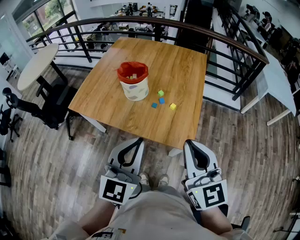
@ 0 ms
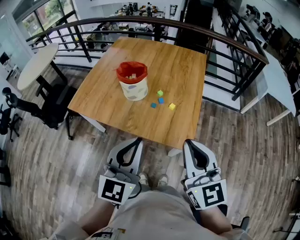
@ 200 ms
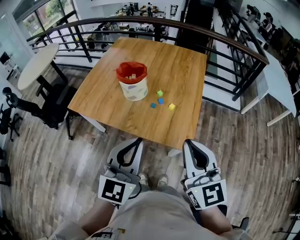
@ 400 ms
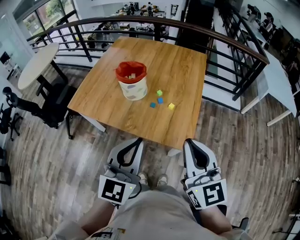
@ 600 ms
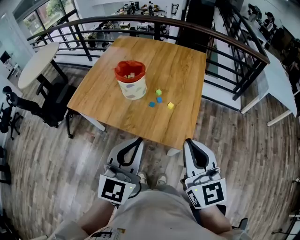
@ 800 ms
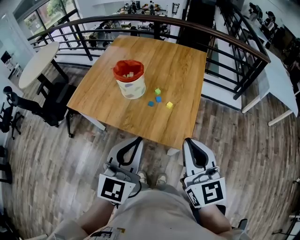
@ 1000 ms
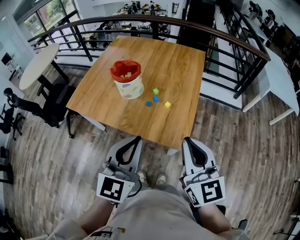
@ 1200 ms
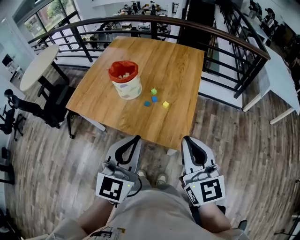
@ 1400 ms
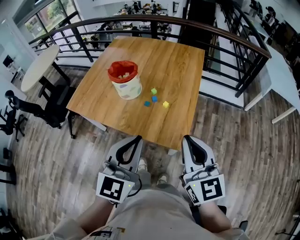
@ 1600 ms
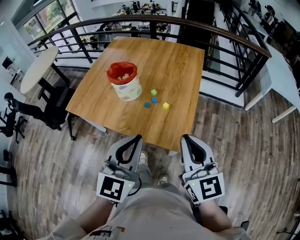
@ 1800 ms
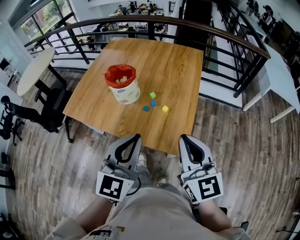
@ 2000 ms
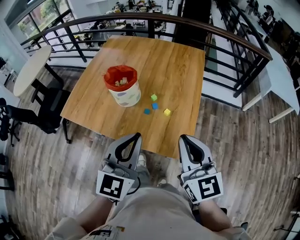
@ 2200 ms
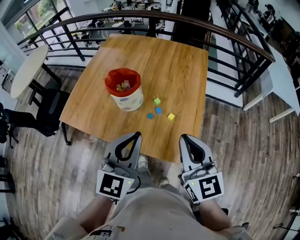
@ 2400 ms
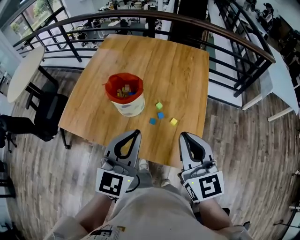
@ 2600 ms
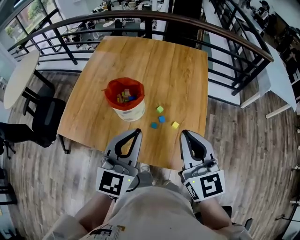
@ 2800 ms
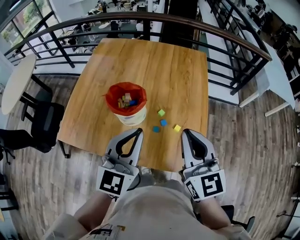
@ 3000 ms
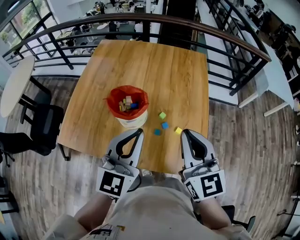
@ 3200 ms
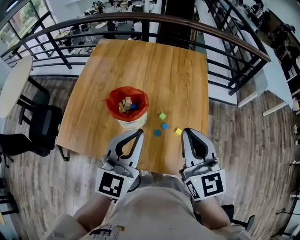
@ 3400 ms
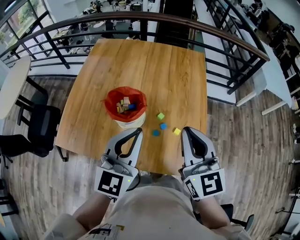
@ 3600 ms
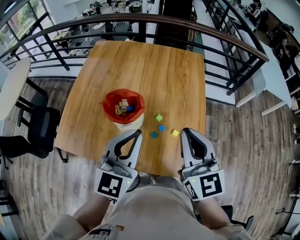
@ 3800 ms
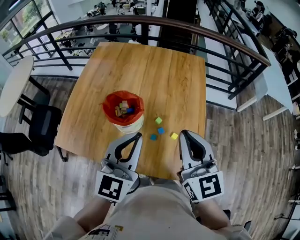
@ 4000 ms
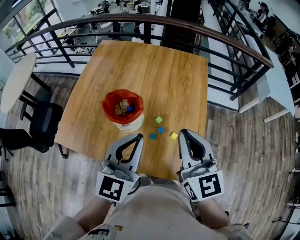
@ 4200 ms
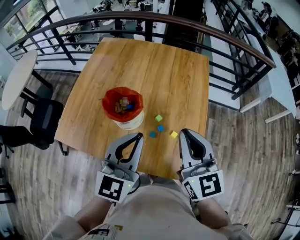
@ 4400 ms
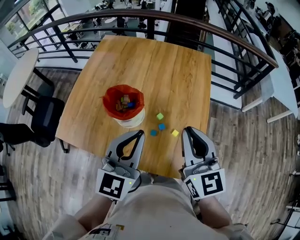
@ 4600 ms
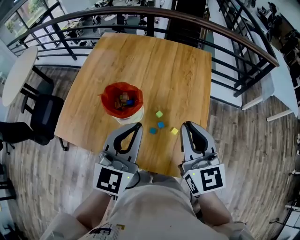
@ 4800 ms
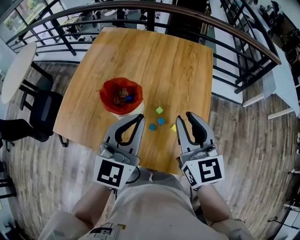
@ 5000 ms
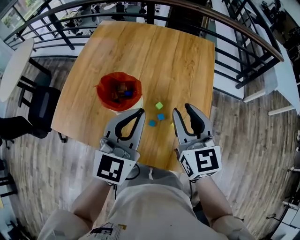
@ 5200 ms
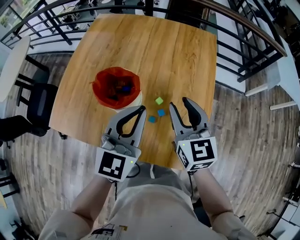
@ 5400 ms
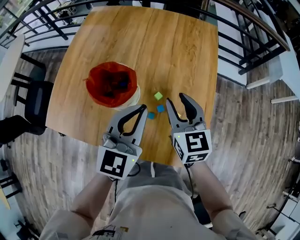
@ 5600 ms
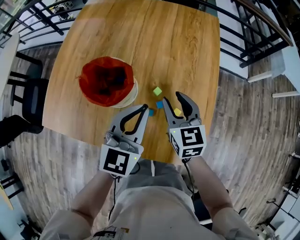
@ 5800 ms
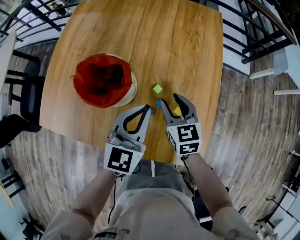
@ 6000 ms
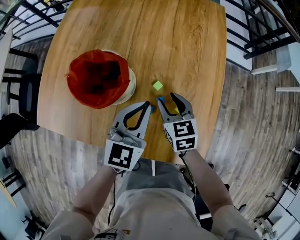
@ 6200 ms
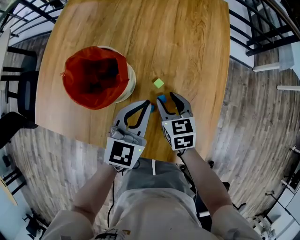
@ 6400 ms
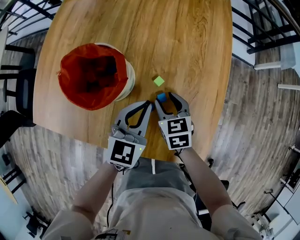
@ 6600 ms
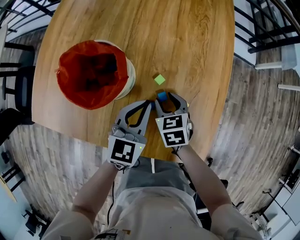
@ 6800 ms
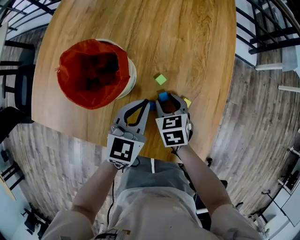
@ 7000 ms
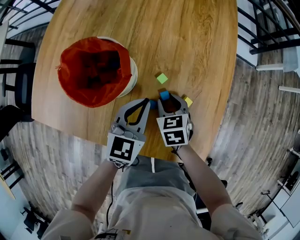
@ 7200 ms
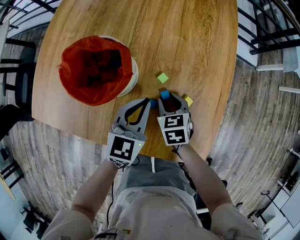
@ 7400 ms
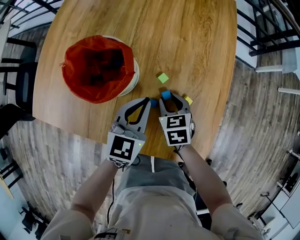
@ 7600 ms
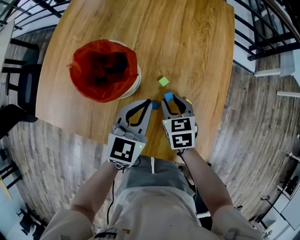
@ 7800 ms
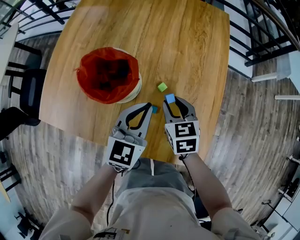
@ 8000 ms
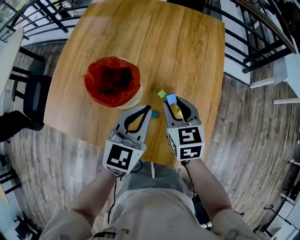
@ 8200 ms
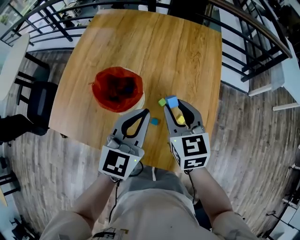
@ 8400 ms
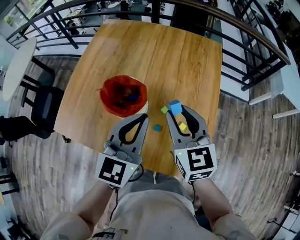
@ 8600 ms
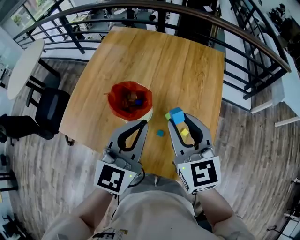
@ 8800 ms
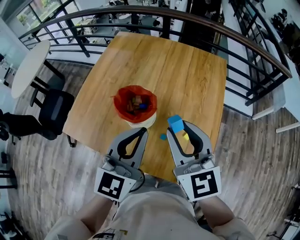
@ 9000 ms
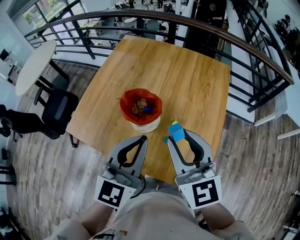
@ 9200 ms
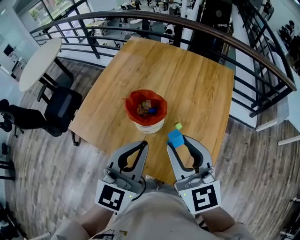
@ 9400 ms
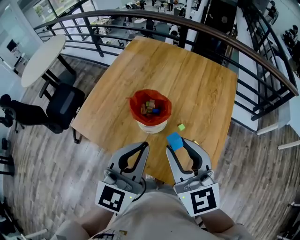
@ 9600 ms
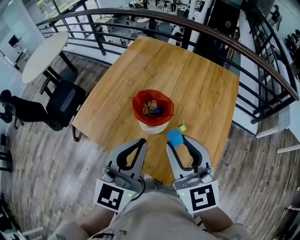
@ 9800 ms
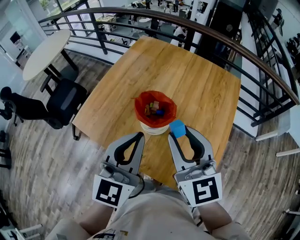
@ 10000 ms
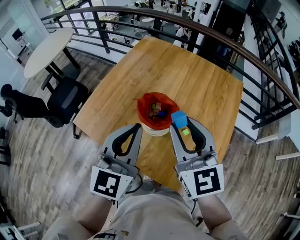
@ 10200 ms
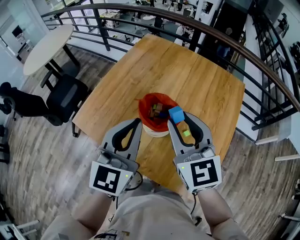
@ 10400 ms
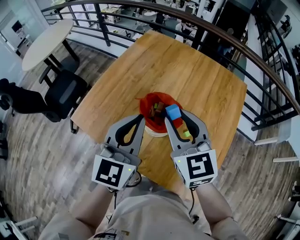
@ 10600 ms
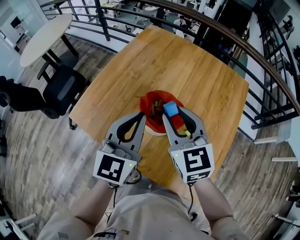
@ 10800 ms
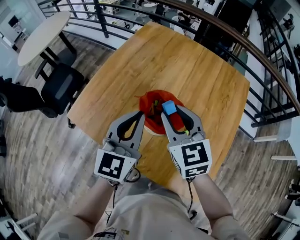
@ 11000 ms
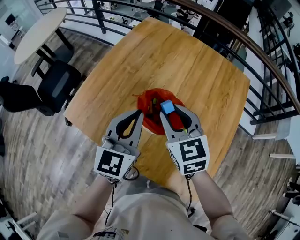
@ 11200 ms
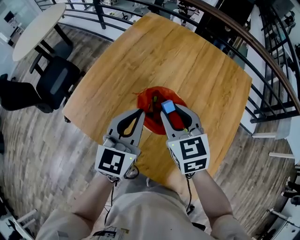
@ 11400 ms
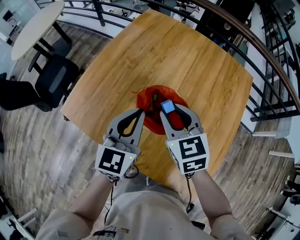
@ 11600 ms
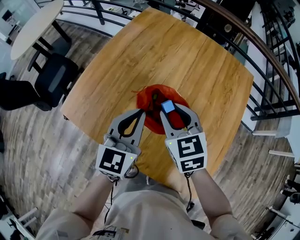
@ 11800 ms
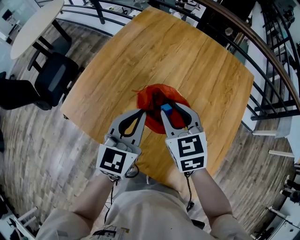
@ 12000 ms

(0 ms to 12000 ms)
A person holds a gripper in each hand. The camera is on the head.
0 ms - 1600 ms: The two grippers go about 10 cm to the right.
1600 ms - 3000 ms: The grippers both shift forward and to the left by some 25 cm.
3000 ms - 4400 ms: The grippers stay close to where they were, moving slightly.
4400 ms - 6000 ms: The two grippers go about 25 cm downward and forward. The right gripper turns by approximately 30 degrees, and opens up.
6000 ms - 7600 ms: The grippers both shift downward by roughly 10 cm.
7600 ms - 9000 ms: Both grippers travel together upward, some 35 cm. The right gripper angles its fingers upward, by roughly 40 degrees. The left gripper turns by roughly 20 degrees.
9000 ms - 10400 ms: The right gripper travels to the left and forward by about 10 cm. Meanwhile the left gripper is displaced to the left by some 10 cm.
10400 ms - 12000 ms: The grippers both shift downward and forward by approximately 20 cm. The right gripper rotates some 20 degrees.

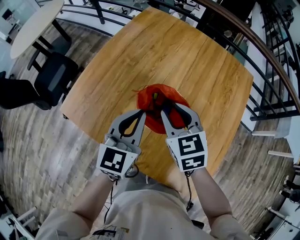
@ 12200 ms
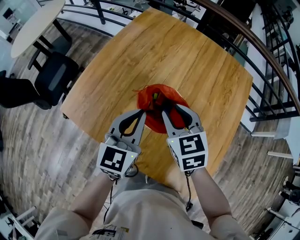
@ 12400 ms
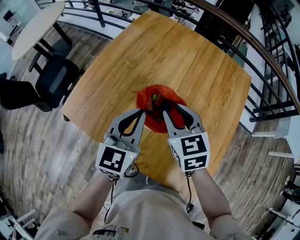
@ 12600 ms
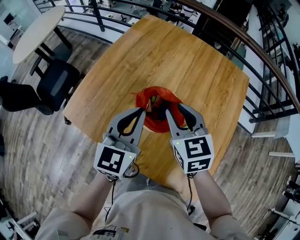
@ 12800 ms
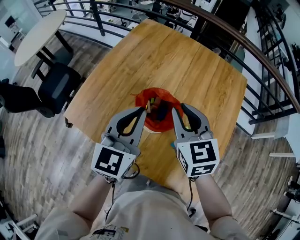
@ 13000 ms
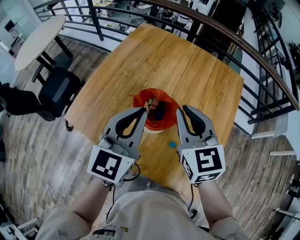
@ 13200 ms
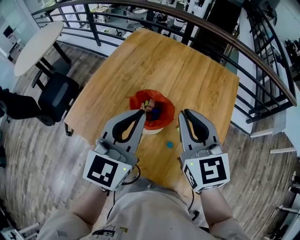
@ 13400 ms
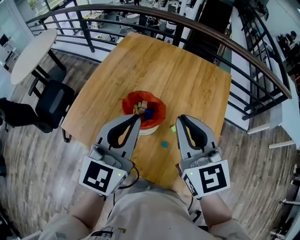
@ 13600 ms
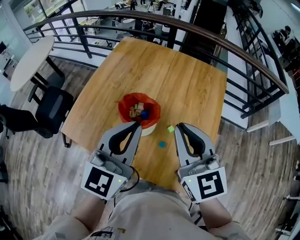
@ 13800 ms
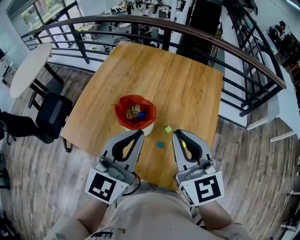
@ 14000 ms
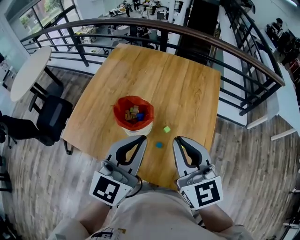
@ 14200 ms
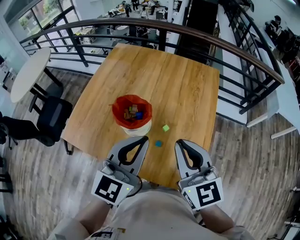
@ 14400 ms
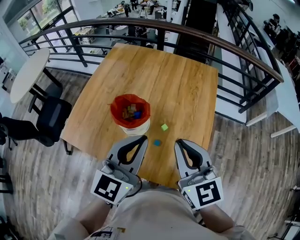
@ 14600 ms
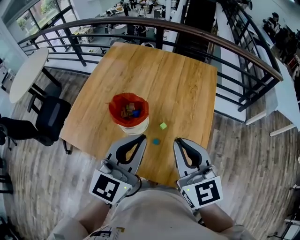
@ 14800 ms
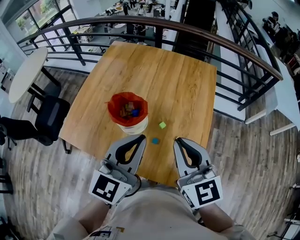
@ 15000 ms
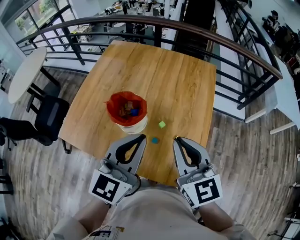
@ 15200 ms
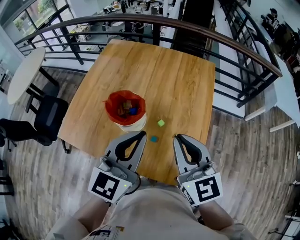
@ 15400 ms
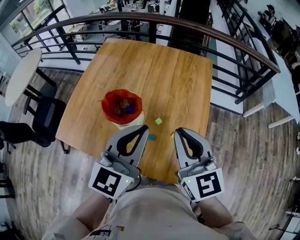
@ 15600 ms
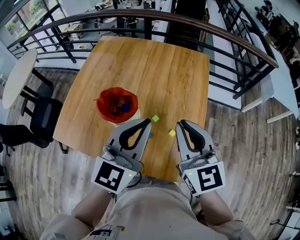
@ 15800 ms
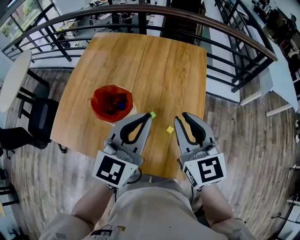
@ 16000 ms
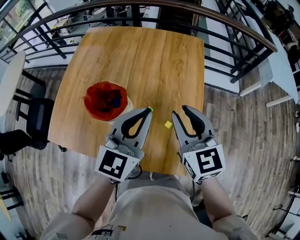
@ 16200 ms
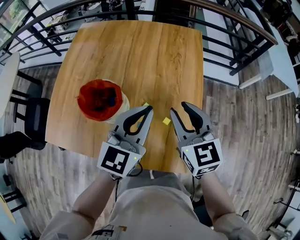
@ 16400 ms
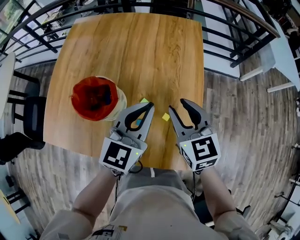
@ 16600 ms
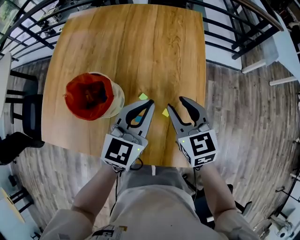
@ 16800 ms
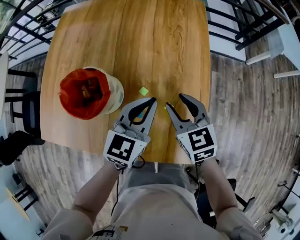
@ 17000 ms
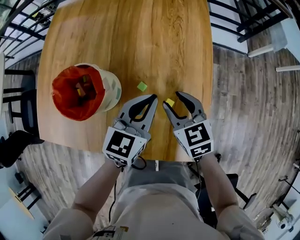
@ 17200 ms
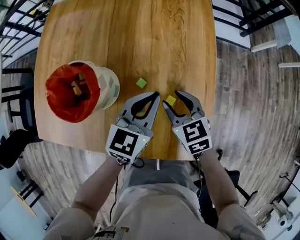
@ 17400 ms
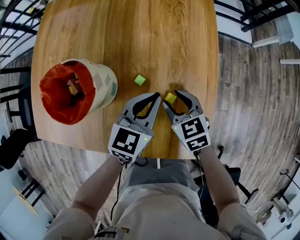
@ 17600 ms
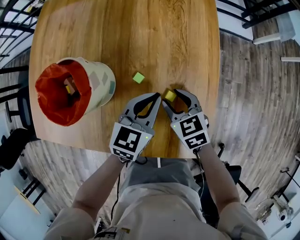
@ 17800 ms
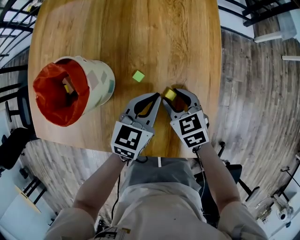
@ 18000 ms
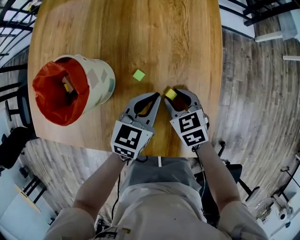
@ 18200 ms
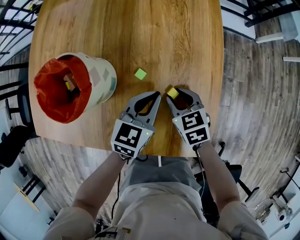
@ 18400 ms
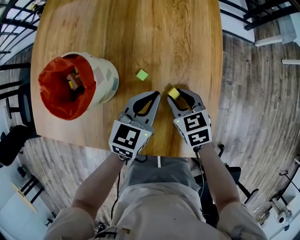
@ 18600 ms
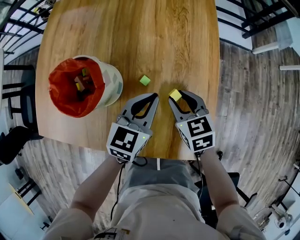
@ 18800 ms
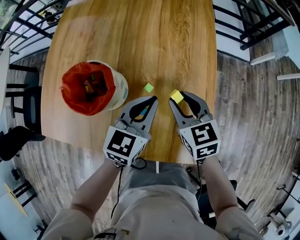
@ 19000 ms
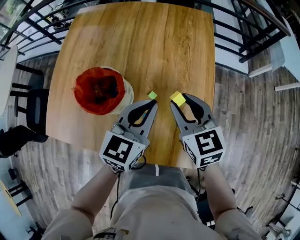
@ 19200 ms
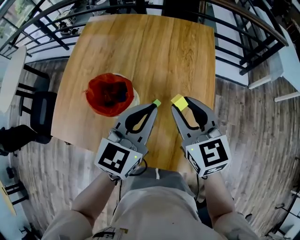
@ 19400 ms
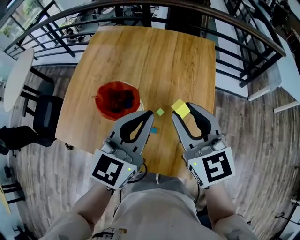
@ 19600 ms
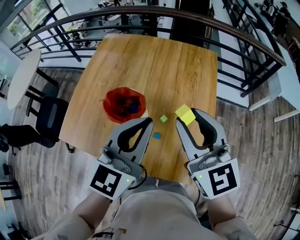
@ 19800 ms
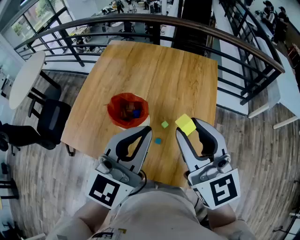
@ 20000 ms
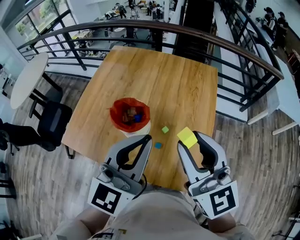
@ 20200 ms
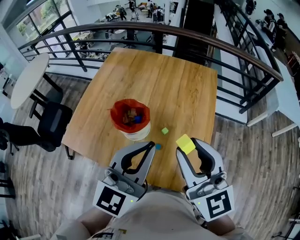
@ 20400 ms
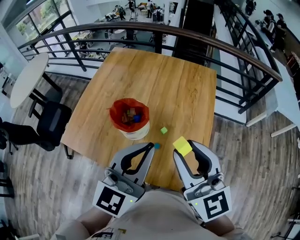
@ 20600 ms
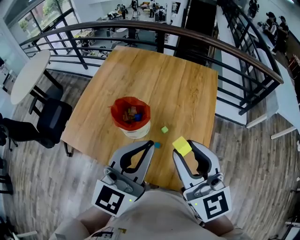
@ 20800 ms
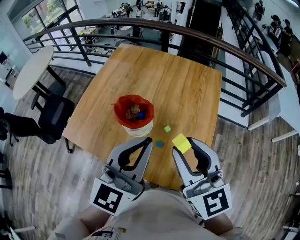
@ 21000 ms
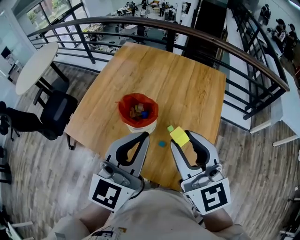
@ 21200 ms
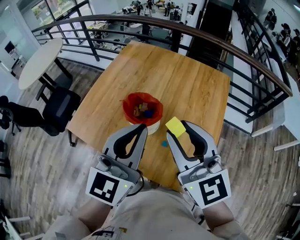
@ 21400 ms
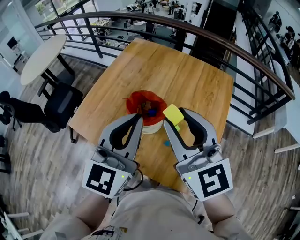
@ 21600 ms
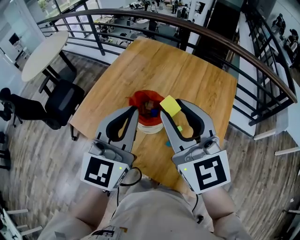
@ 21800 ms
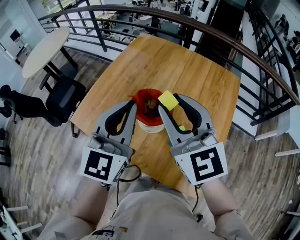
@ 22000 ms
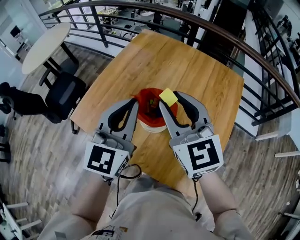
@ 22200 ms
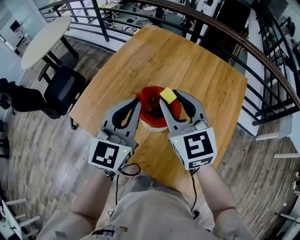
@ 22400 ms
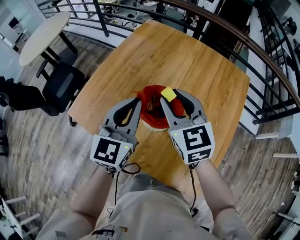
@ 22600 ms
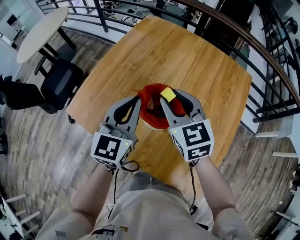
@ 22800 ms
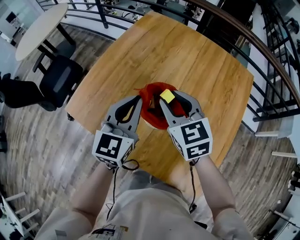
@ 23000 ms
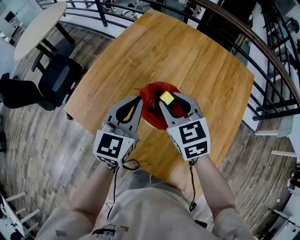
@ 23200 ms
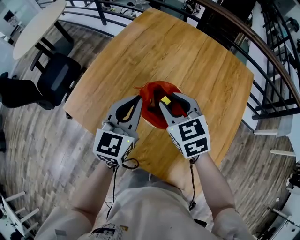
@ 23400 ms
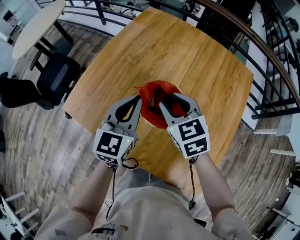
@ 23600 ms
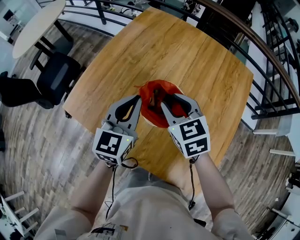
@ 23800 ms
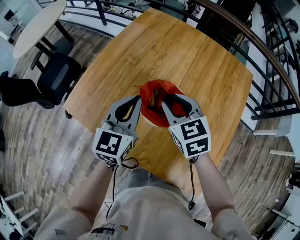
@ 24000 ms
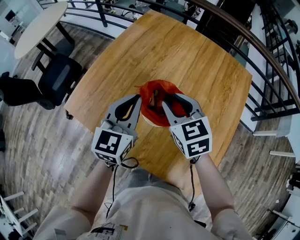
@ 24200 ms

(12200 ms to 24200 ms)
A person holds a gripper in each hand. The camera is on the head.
12200 ms - 13800 ms: Both grippers travel together upward, backward and to the right, approximately 25 cm. The right gripper rotates some 30 degrees, and closes its fingers.
13800 ms - 15200 ms: The right gripper shifts about 10 cm to the right and backward, while the left gripper moves to the right, approximately 5 cm.
15200 ms - 16600 ms: The two grippers go some 20 cm downward, forward and to the right. The right gripper opens.
16600 ms - 18200 ms: The two grippers go roughly 25 cm downward. The right gripper rotates approximately 30 degrees. Meanwhile the left gripper rotates about 20 degrees.
18200 ms - 19800 ms: The grippers both shift upward by approximately 40 cm. The left gripper swivels approximately 30 degrees; the right gripper angles its fingers upward, by some 40 degrees.
19800 ms - 21200 ms: Both grippers move backward, approximately 5 cm.
21200 ms - 22600 ms: The left gripper goes approximately 20 cm forward, to the left and downward. The right gripper shifts roughly 25 cm forward, downward and to the left.
22600 ms - 24200 ms: The grippers both shift downward by about 5 cm.
